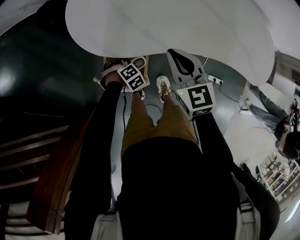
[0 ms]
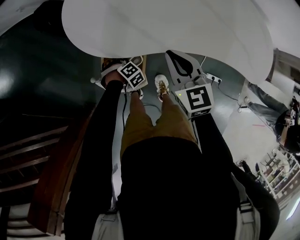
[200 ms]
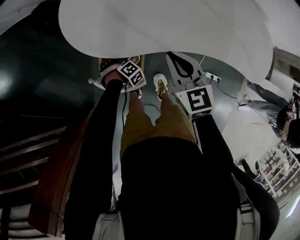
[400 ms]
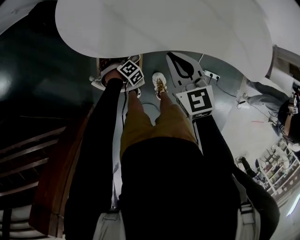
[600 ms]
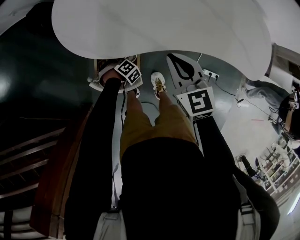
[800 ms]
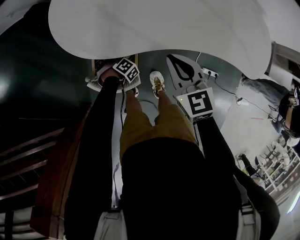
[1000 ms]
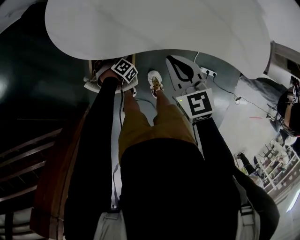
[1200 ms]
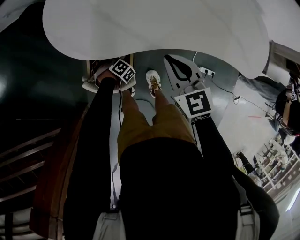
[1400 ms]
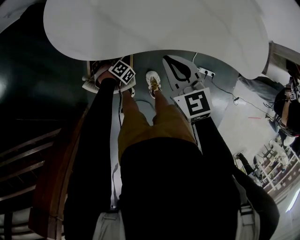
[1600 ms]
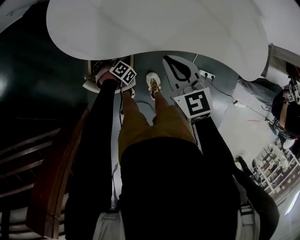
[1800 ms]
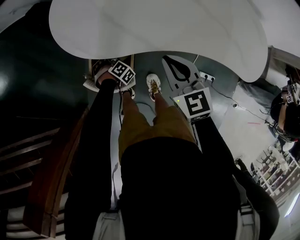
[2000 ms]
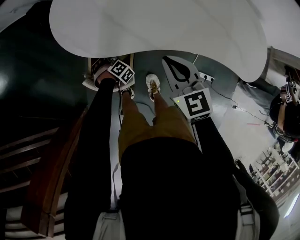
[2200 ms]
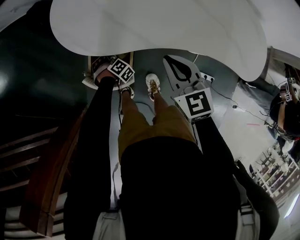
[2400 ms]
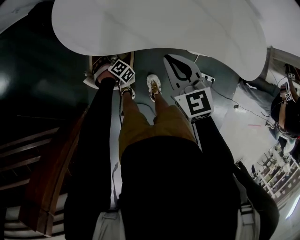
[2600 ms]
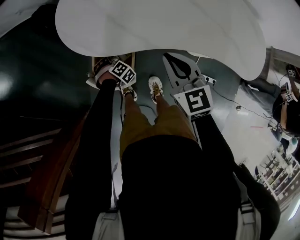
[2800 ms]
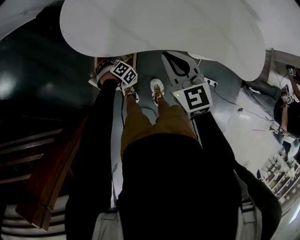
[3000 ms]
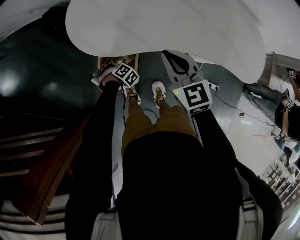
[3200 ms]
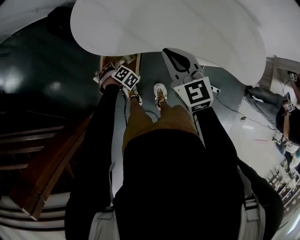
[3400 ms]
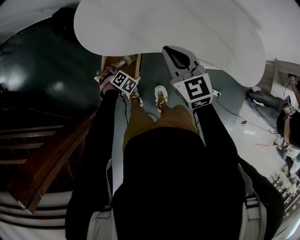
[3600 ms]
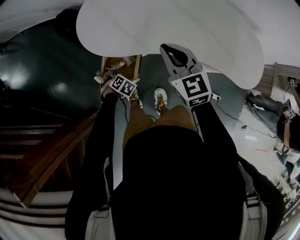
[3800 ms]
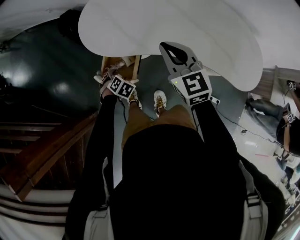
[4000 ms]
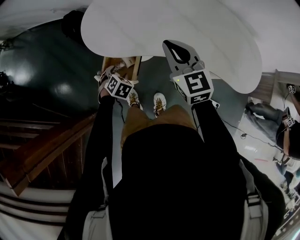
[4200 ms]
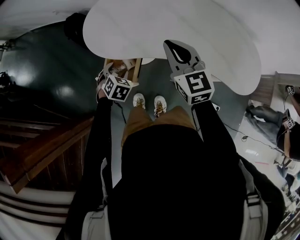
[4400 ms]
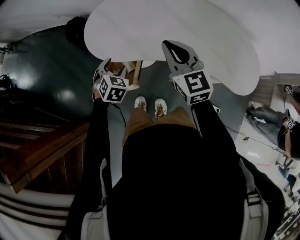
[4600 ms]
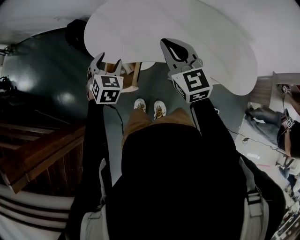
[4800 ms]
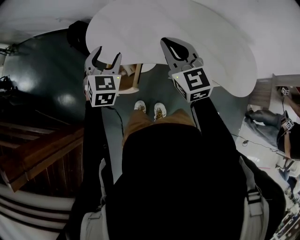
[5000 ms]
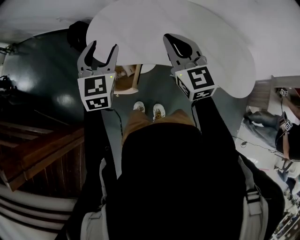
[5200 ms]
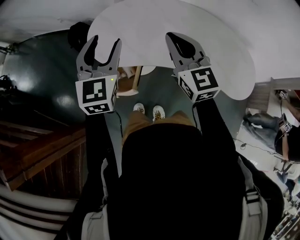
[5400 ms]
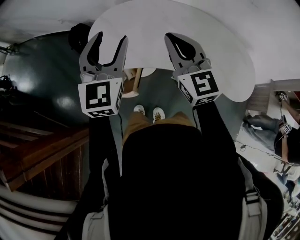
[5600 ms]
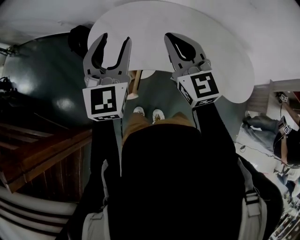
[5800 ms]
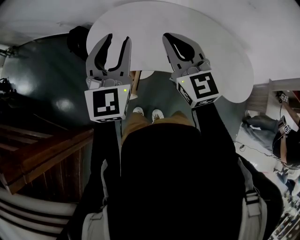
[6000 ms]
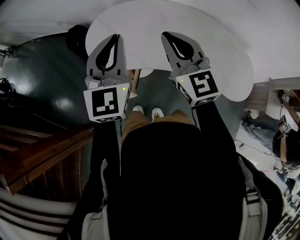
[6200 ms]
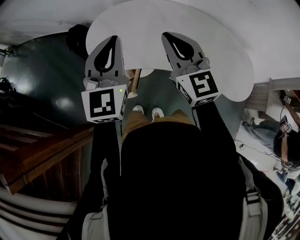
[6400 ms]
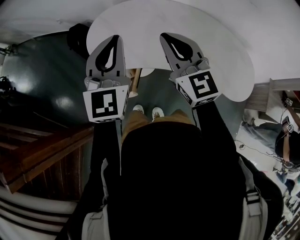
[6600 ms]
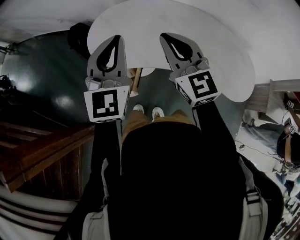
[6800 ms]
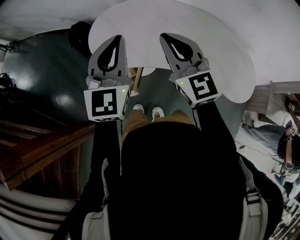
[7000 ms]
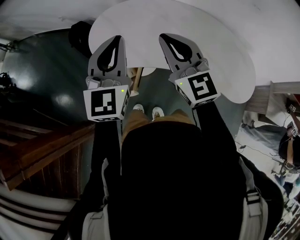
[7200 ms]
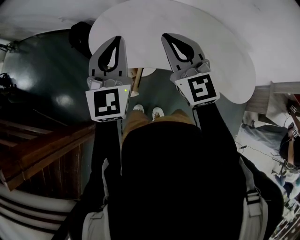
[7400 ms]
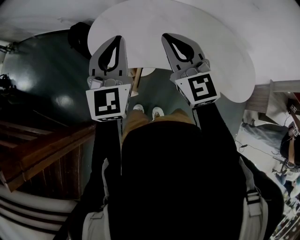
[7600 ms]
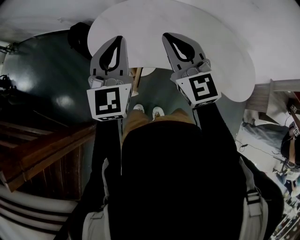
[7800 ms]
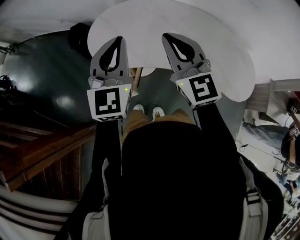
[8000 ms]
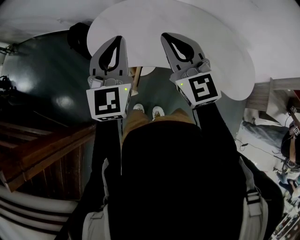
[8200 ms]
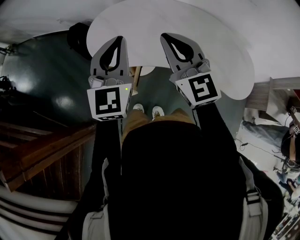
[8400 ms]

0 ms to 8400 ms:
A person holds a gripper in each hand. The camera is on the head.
0 ms to 1400 ms: The left gripper travels downward by some 5 cm.
1400 ms to 2800 ms: The grippers make only small movements.
2800 ms to 4200 ms: The left gripper heads upward, covering some 15 cm, and changes its angle by some 30 degrees. Meanwhile the right gripper shifts some 10 cm upward.
4200 ms to 5600 ms: The right gripper goes some 10 cm upward. The left gripper is displaced upward by about 40 cm, and angles its fingers upward, by roughly 60 degrees.
5600 ms to 7000 ms: The left gripper closes.
7000 ms to 8400 ms: The grippers stay close to where they were, moving slightly.

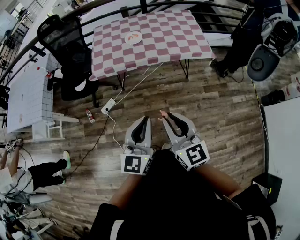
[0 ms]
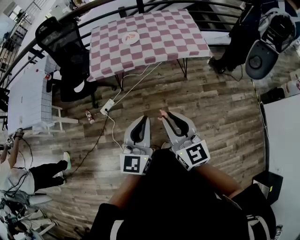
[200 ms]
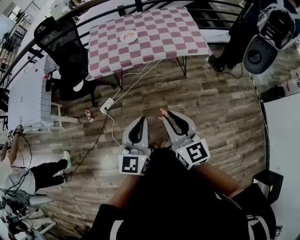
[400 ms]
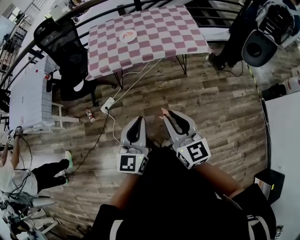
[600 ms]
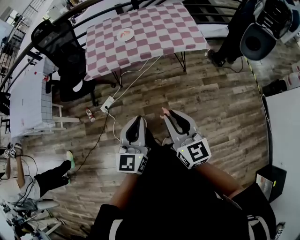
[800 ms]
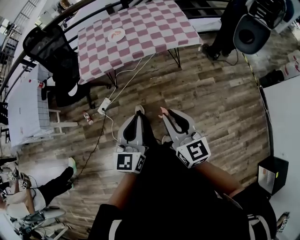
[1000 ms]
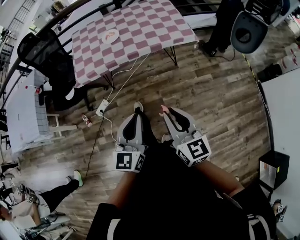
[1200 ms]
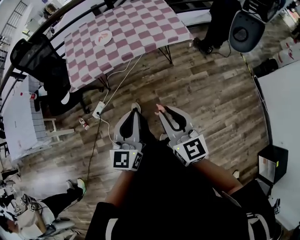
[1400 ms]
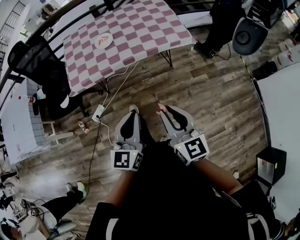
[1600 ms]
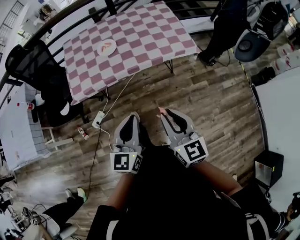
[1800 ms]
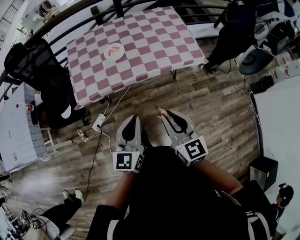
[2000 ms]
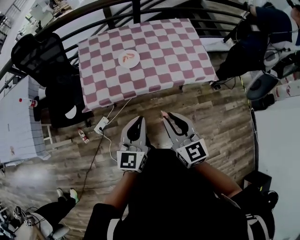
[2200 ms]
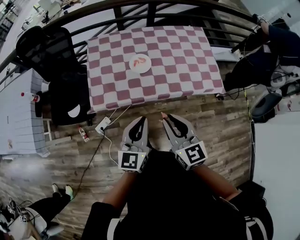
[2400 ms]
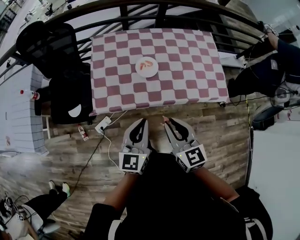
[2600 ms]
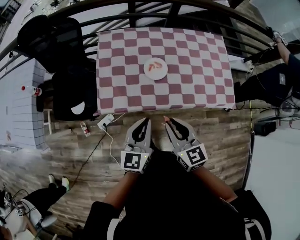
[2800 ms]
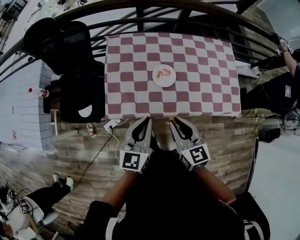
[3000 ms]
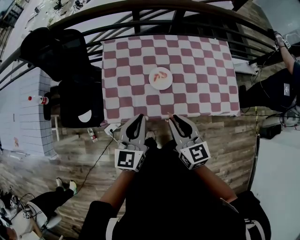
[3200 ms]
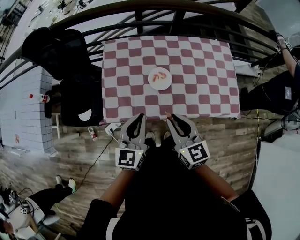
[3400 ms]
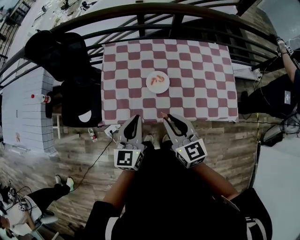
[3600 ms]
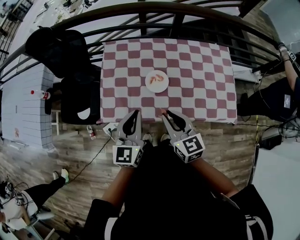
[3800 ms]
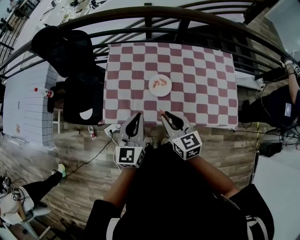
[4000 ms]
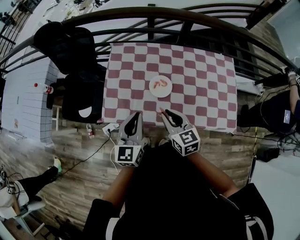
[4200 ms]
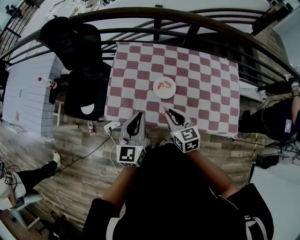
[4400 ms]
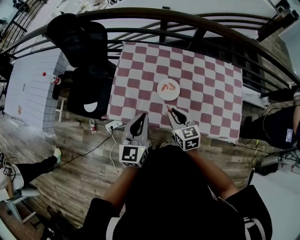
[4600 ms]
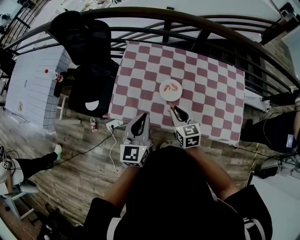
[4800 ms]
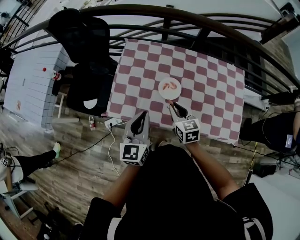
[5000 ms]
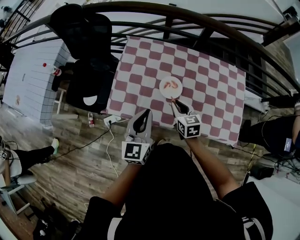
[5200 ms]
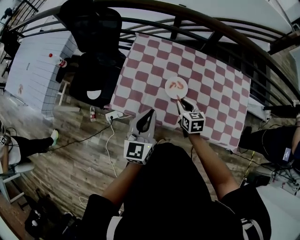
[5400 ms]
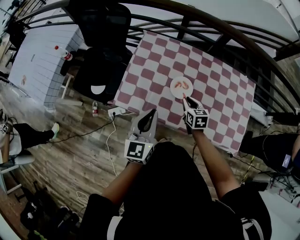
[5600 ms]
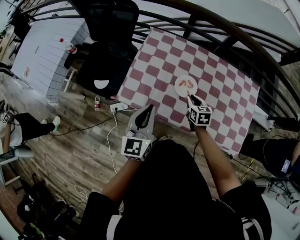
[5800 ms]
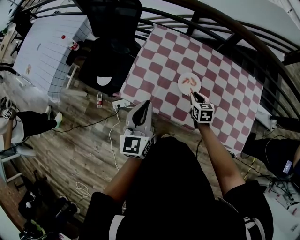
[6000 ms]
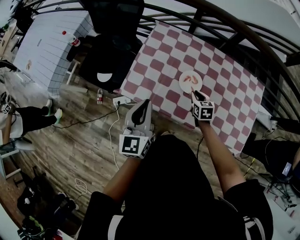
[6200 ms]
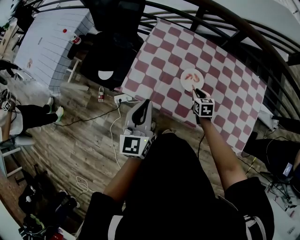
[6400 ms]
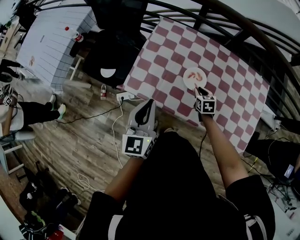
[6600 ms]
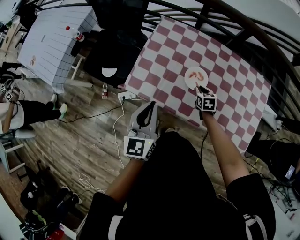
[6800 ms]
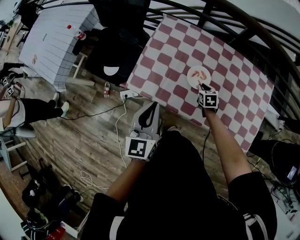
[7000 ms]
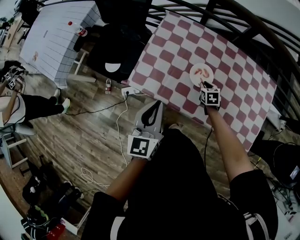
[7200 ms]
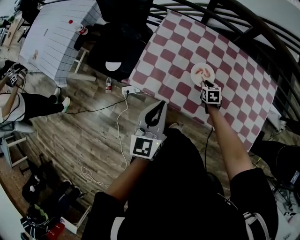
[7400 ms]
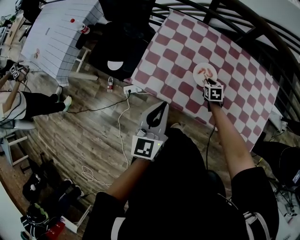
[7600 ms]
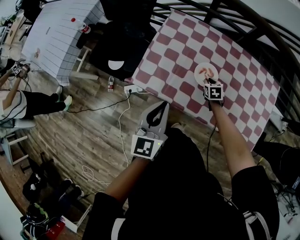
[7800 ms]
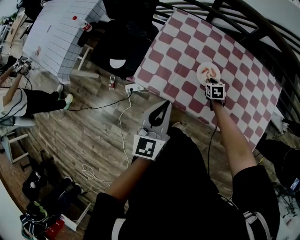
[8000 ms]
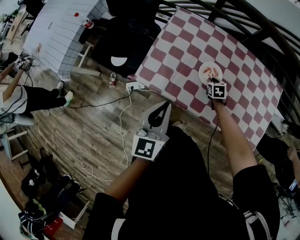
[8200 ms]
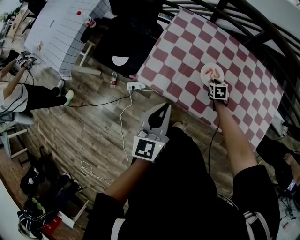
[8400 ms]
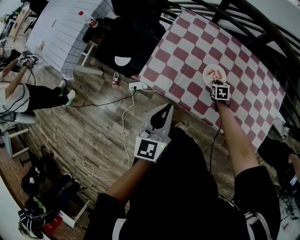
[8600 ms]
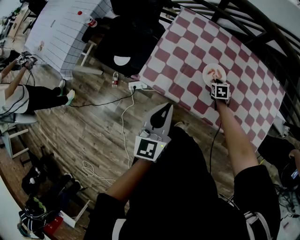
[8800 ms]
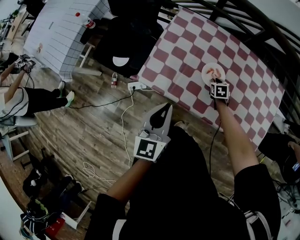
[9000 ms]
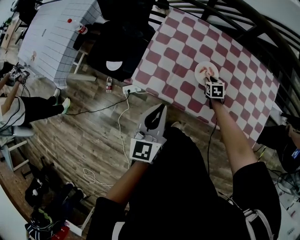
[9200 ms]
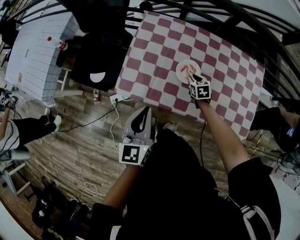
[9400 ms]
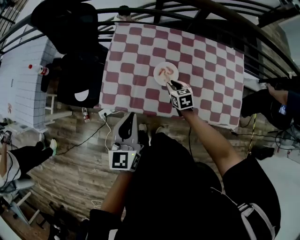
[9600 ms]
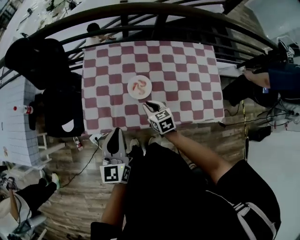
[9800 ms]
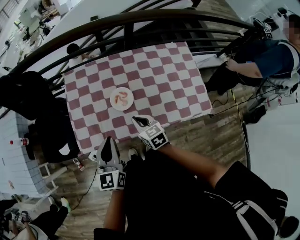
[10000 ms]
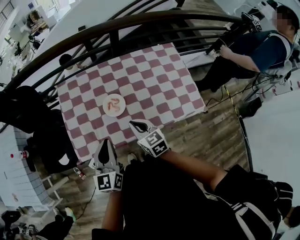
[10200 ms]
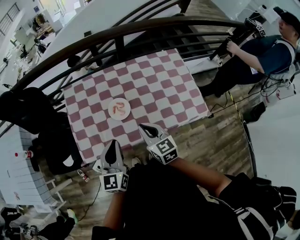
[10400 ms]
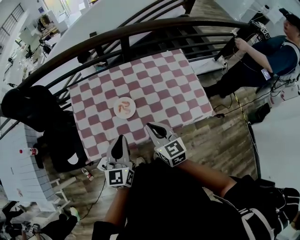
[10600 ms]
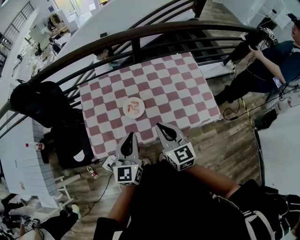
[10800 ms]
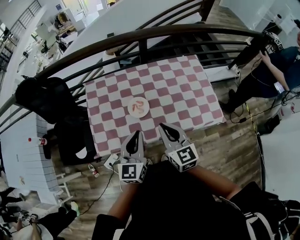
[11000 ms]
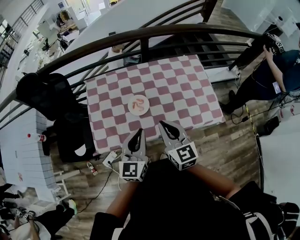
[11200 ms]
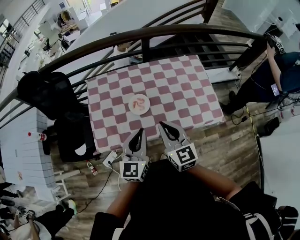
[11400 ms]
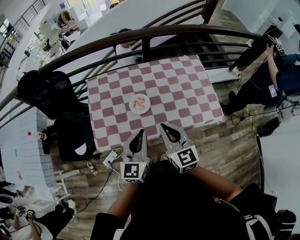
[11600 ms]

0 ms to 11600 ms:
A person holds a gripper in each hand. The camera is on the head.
0 ms to 1400 ms: The grippers both shift to the right by approximately 5 cm.
1400 ms to 2800 ms: The pair of grippers is taken forward and to the left, approximately 50 cm.
2800 ms to 4400 ms: The right gripper heads forward and downward, covering approximately 15 cm. Meanwhile the left gripper shifts some 10 cm forward.
4400 ms to 5800 ms: The right gripper shifts about 15 cm downward and forward.
5800 ms to 7200 ms: The right gripper goes approximately 10 cm downward.
7200 ms to 8800 ms: There are only small adjustments of the grippers.
8800 ms to 10200 ms: The right gripper heads upward and backward, covering some 30 cm, and angles its fingers upward, by about 30 degrees; the left gripper travels to the right by some 10 cm, and rotates some 30 degrees.
10200 ms to 11600 ms: The right gripper moves upward and backward, some 15 cm, and turns by approximately 20 degrees. The left gripper shifts by some 5 cm.

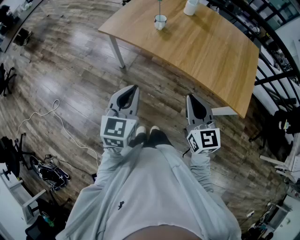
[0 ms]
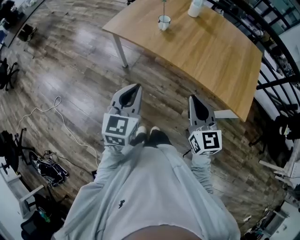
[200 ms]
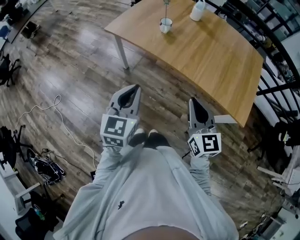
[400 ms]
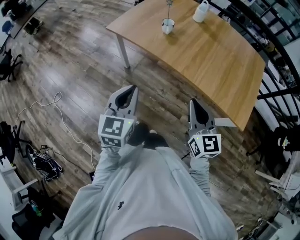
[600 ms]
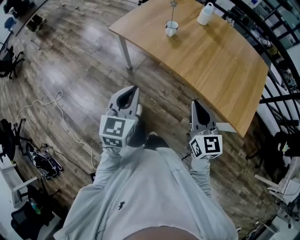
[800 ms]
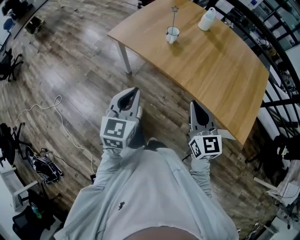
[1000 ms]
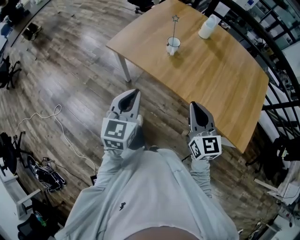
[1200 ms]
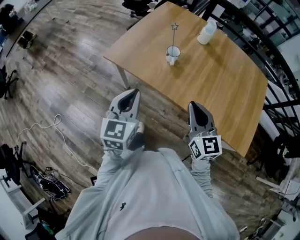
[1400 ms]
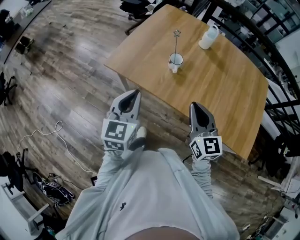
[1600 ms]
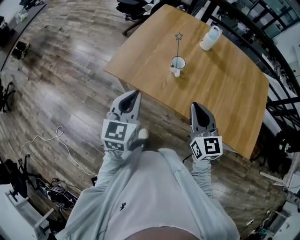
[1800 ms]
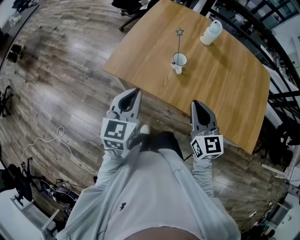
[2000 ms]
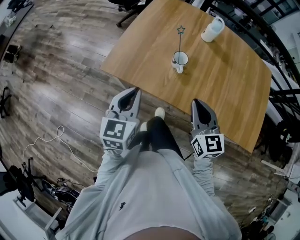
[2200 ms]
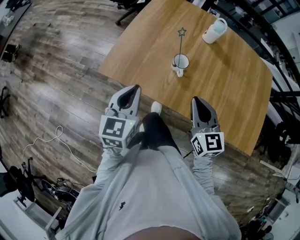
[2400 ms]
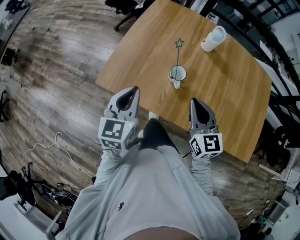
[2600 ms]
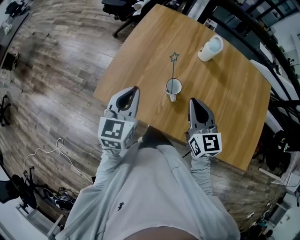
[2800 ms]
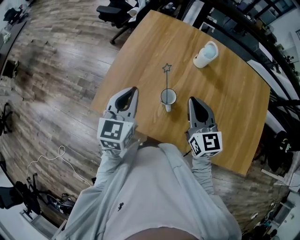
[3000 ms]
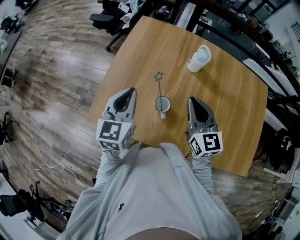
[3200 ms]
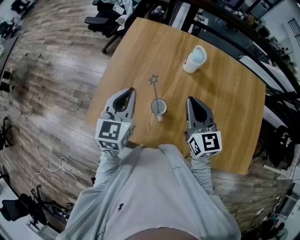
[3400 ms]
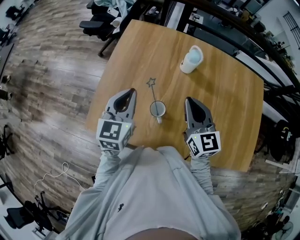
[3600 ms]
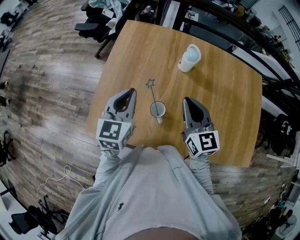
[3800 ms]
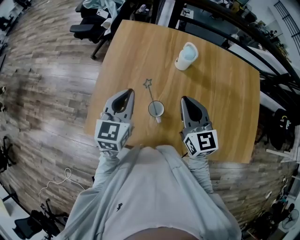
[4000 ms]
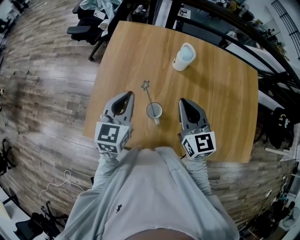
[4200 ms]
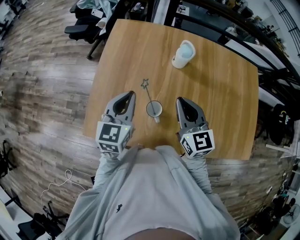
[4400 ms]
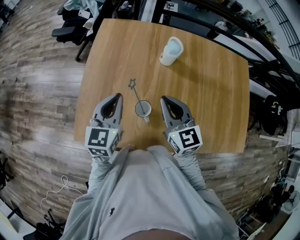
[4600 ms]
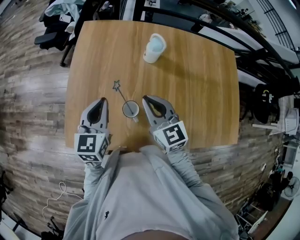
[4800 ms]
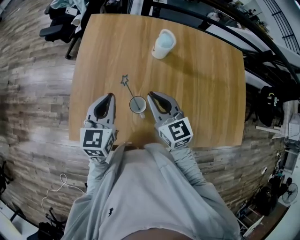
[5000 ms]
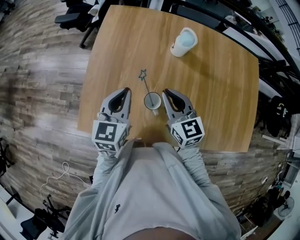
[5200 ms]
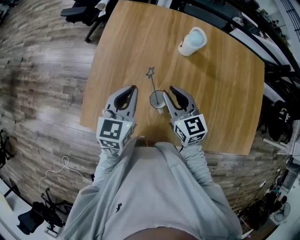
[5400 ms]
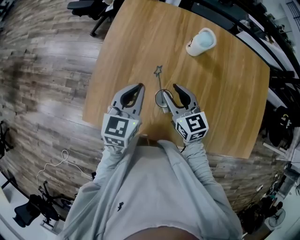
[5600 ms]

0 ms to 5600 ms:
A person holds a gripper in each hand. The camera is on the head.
0 ms to 1400 ms: Both grippers travel together forward, approximately 20 cm.
1400 ms to 2800 ms: Both grippers travel together forward, about 25 cm.
2800 ms to 4200 ms: The left gripper is displaced forward and to the right by roughly 15 cm, while the right gripper is displaced forward by some 10 cm.
4200 ms to 5600 ms: The right gripper moves downward and to the left, some 15 cm, and opens its fingers, while the left gripper moves downward, about 5 cm.
